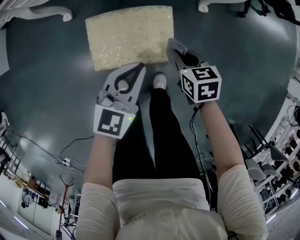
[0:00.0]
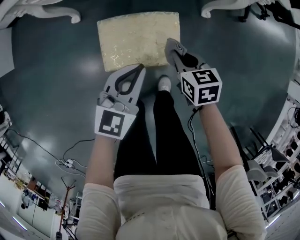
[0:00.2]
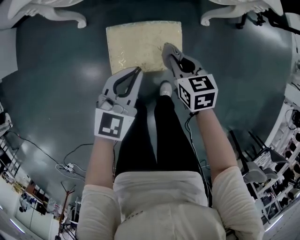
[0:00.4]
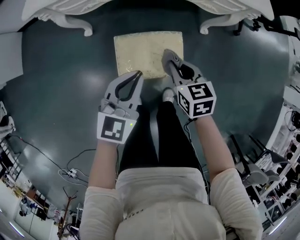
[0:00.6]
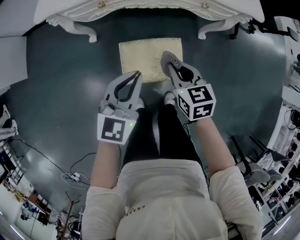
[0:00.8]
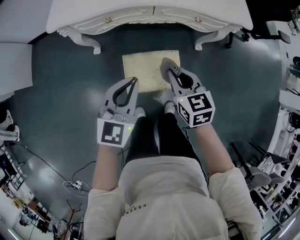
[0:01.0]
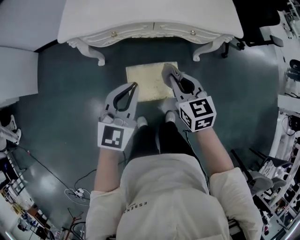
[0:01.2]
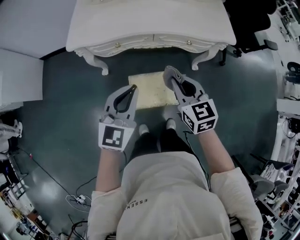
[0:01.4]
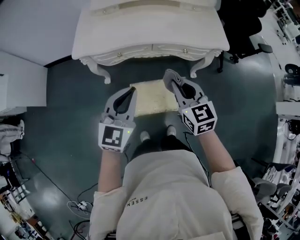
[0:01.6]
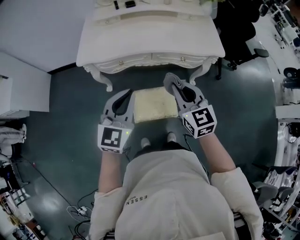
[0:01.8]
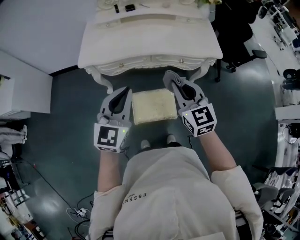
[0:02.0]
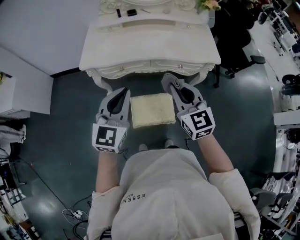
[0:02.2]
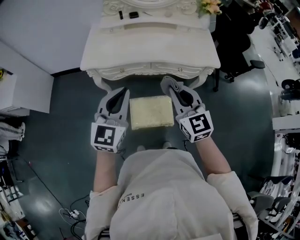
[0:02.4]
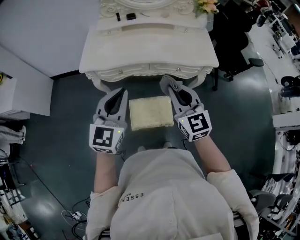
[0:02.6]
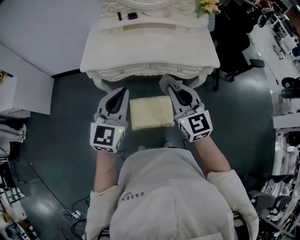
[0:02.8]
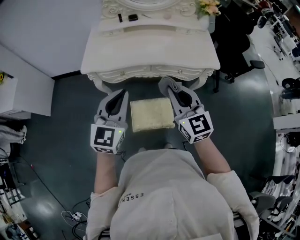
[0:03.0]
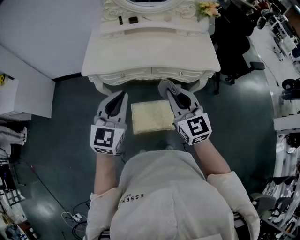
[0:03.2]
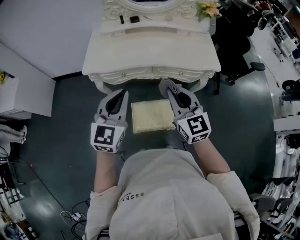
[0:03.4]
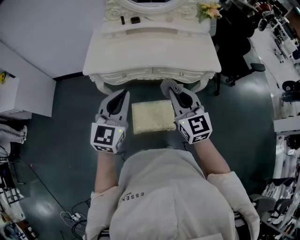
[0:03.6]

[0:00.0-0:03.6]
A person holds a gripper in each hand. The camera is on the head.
0:00.0 to 0:01.8: The two grippers go about 50 cm upward. The left gripper changes its angle by approximately 20 degrees; the right gripper points its fingers some 40 degrees further upward.
0:01.8 to 0:03.6: The two grippers go some 5 cm upward.

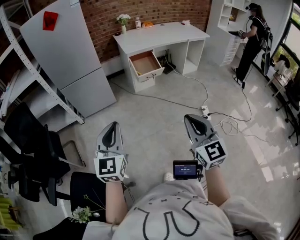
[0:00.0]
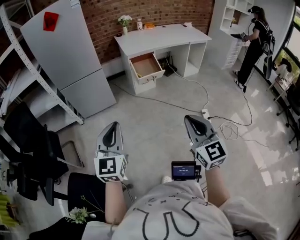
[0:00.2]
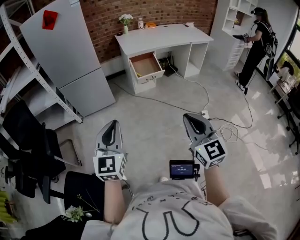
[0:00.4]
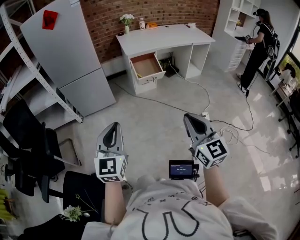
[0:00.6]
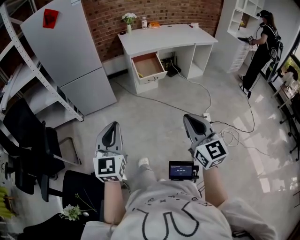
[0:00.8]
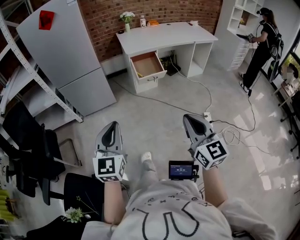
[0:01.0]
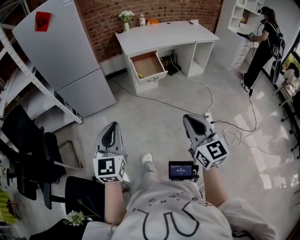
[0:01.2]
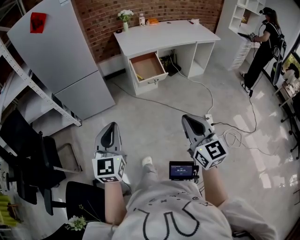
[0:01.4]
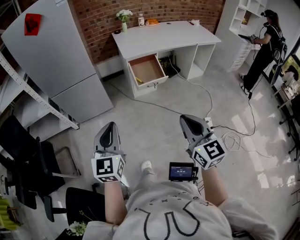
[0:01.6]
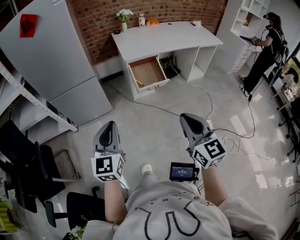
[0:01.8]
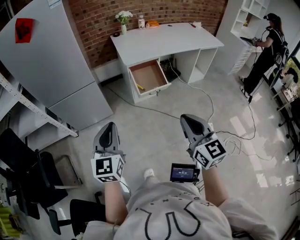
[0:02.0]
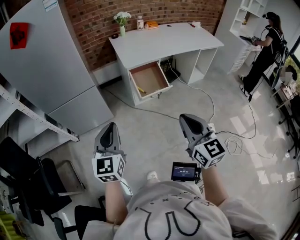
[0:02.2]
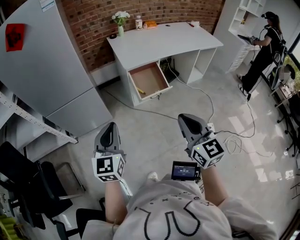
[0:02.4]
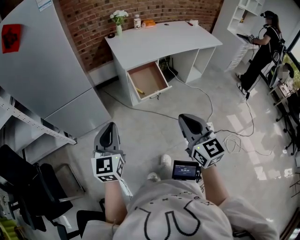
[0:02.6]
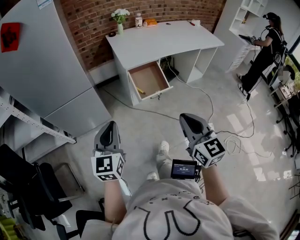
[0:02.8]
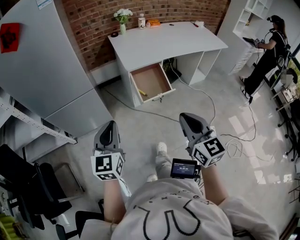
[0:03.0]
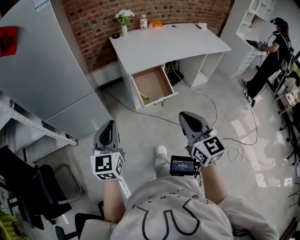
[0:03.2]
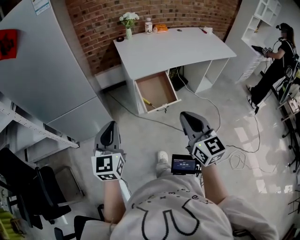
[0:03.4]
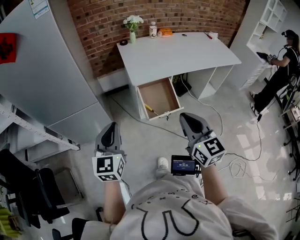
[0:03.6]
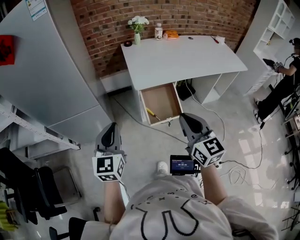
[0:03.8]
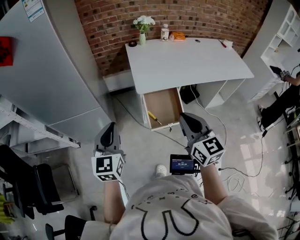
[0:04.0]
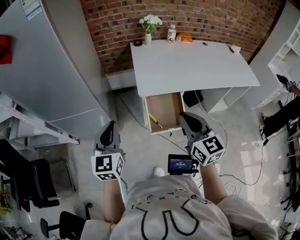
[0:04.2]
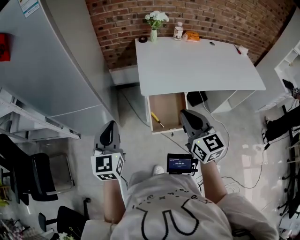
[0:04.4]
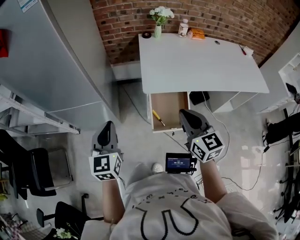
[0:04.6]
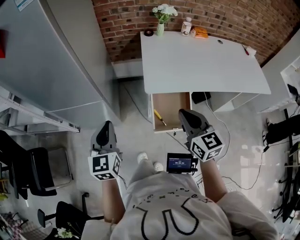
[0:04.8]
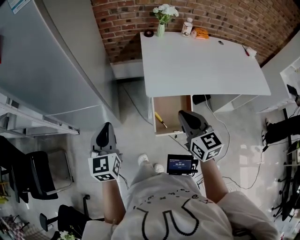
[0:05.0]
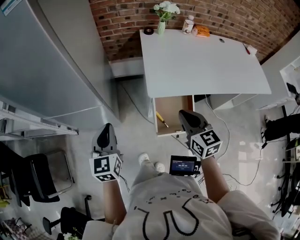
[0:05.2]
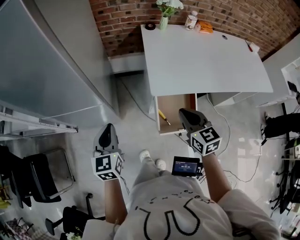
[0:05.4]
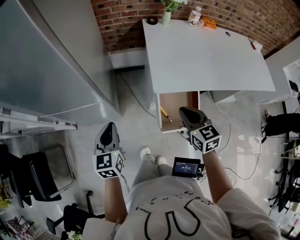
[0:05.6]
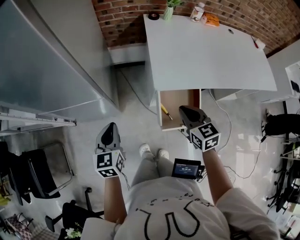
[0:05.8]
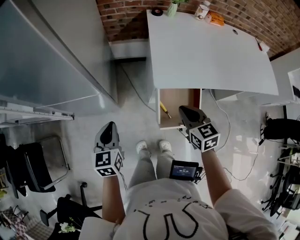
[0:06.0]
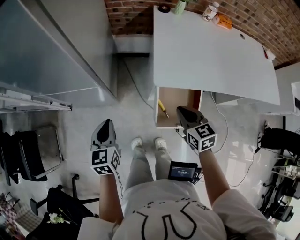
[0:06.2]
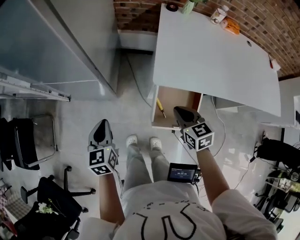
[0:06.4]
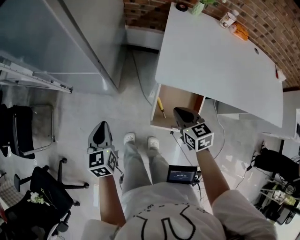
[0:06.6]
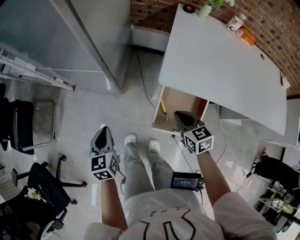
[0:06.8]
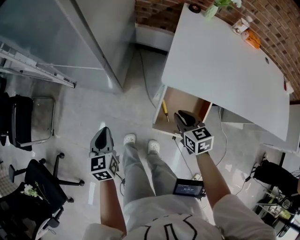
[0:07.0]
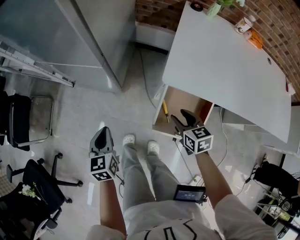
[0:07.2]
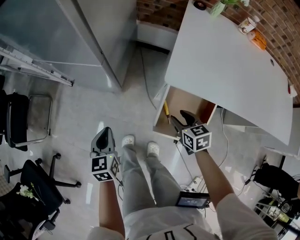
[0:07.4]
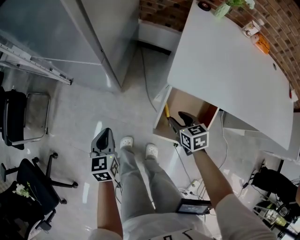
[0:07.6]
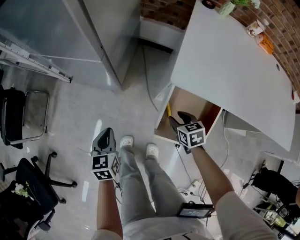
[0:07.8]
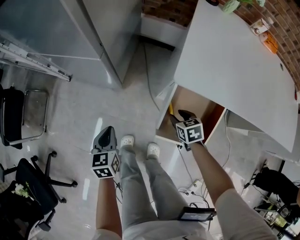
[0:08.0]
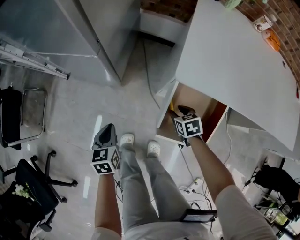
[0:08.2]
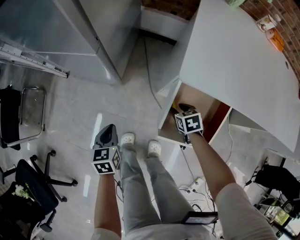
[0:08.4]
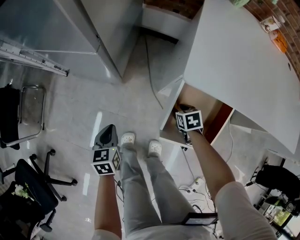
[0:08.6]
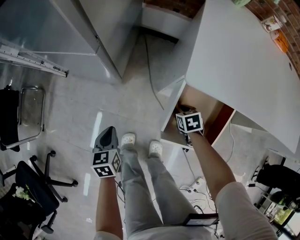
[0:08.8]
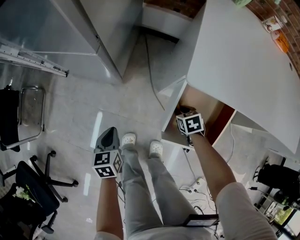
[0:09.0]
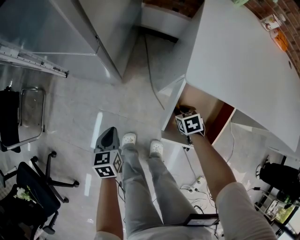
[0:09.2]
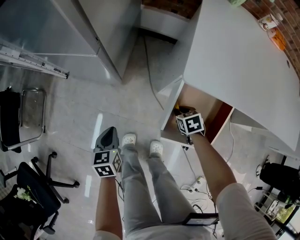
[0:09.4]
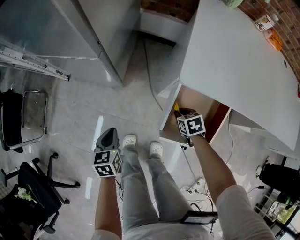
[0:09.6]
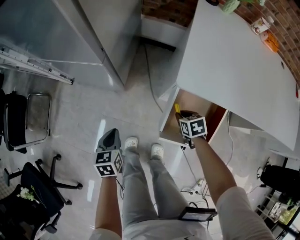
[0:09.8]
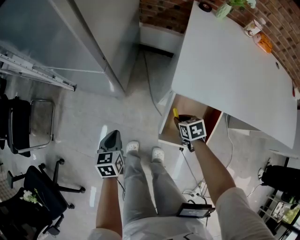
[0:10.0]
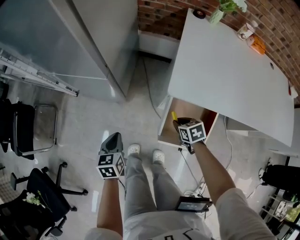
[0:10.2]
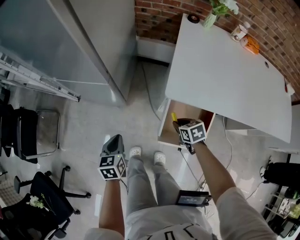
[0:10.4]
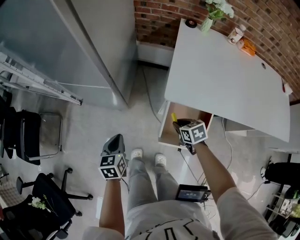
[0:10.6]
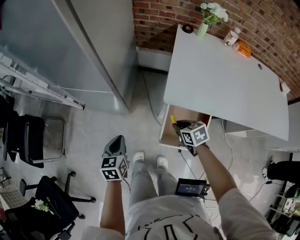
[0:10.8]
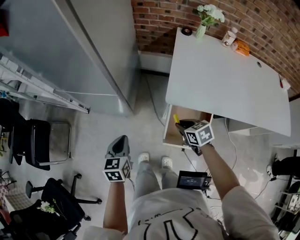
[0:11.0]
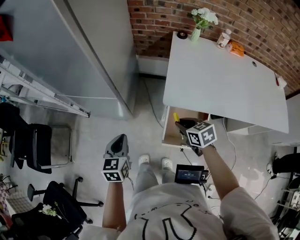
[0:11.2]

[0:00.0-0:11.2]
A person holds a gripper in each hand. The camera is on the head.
0:00.0 to 0:01.6: The two grippers go approximately 25 cm forward.
0:01.6 to 0:03.2: The grippers both shift forward by some 25 cm.
0:03.2 to 0:04.8: Both grippers move forward, some 25 cm. The left gripper turns by approximately 20 degrees.
0:04.8 to 0:06.4: The left gripper shifts approximately 15 cm downward, and rotates roughly 20 degrees; the right gripper goes about 20 cm downward and forward, and swivels approximately 30 degrees.
0:06.4 to 0:08.0: The grippers both shift downward by roughly 20 cm. The right gripper changes its angle by roughly 20 degrees, and opens its fingers.
0:08.0 to 0:09.6: The right gripper closes its fingers.
0:09.6 to 0:11.2: Both grippers travel together upward, roughly 30 cm. The right gripper turns by approximately 20 degrees; the left gripper turns by about 20 degrees.

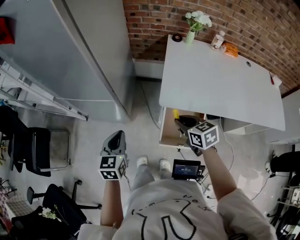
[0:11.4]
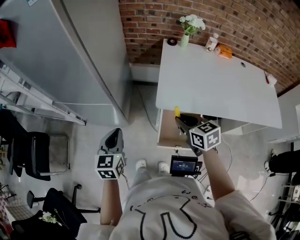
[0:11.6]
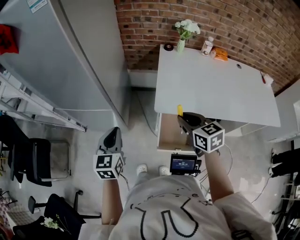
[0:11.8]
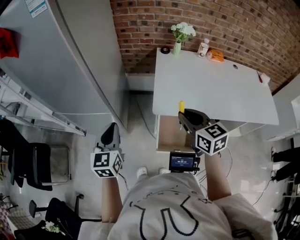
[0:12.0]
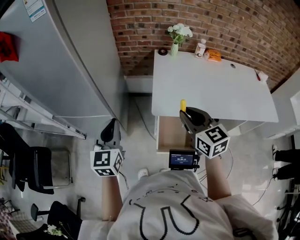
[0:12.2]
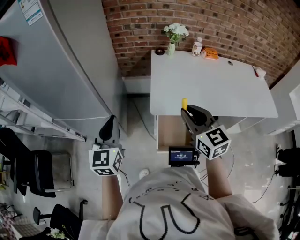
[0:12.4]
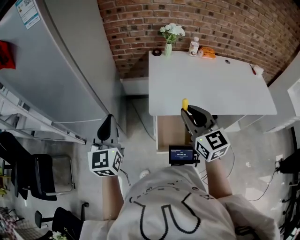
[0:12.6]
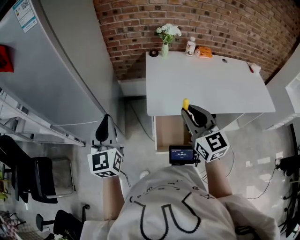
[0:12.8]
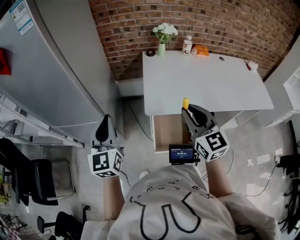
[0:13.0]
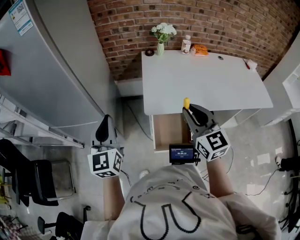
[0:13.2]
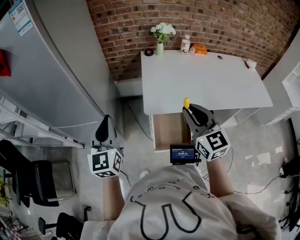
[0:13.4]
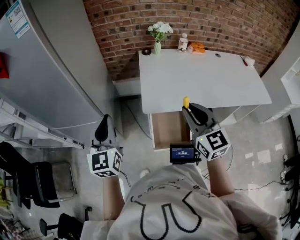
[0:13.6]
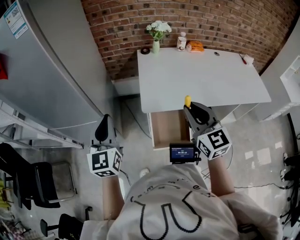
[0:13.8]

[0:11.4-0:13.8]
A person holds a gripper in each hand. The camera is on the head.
0:11.4 to 0:12.6: The two grippers go some 15 cm upward. The left gripper swivels approximately 30 degrees. Meanwhile the right gripper swivels some 40 degrees.
0:12.6 to 0:13.8: The grippers move only a little.

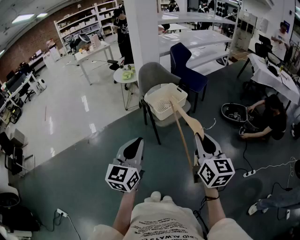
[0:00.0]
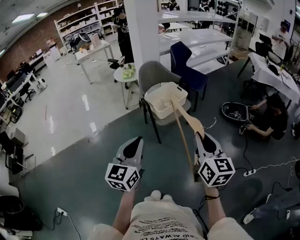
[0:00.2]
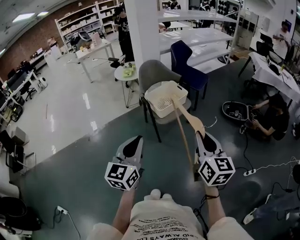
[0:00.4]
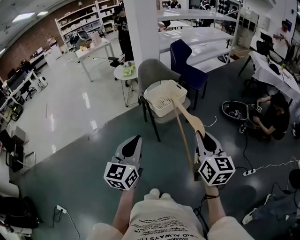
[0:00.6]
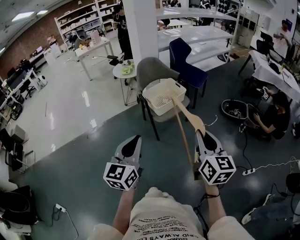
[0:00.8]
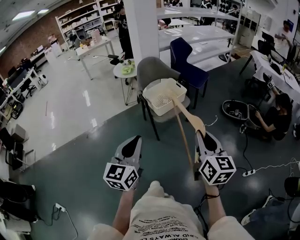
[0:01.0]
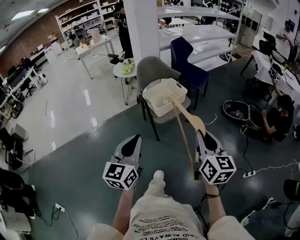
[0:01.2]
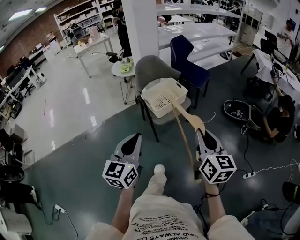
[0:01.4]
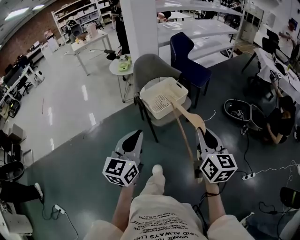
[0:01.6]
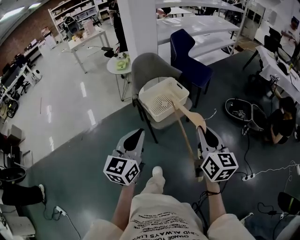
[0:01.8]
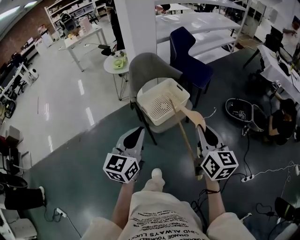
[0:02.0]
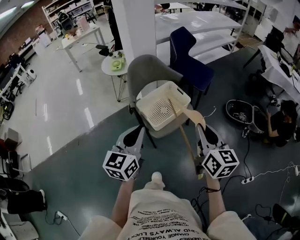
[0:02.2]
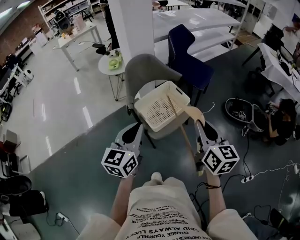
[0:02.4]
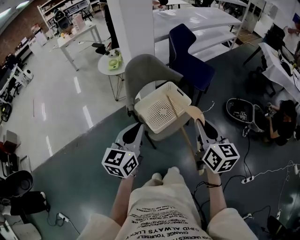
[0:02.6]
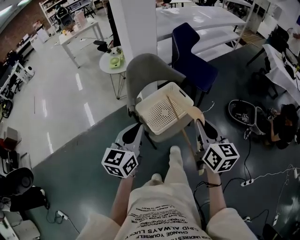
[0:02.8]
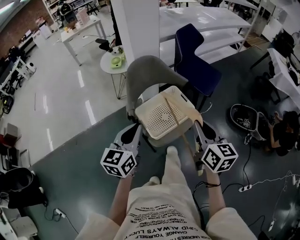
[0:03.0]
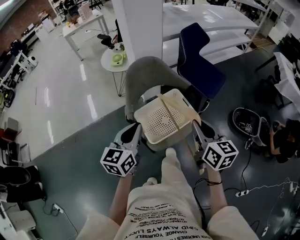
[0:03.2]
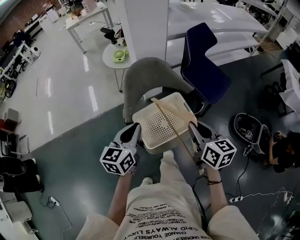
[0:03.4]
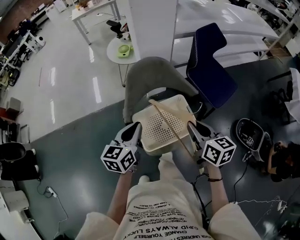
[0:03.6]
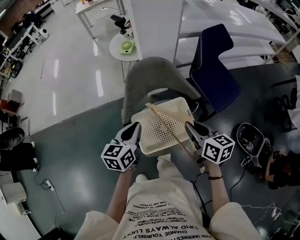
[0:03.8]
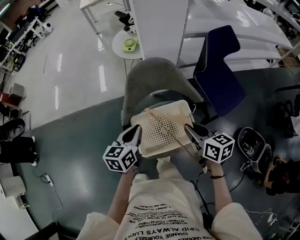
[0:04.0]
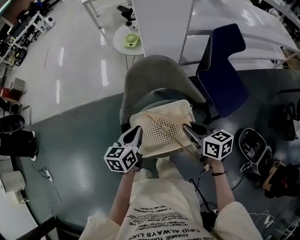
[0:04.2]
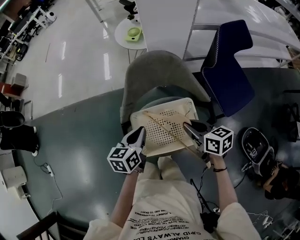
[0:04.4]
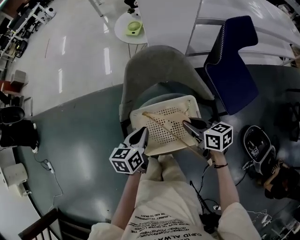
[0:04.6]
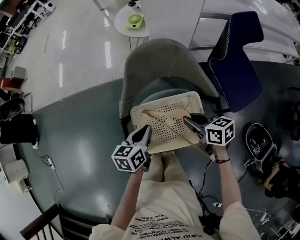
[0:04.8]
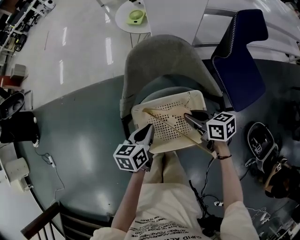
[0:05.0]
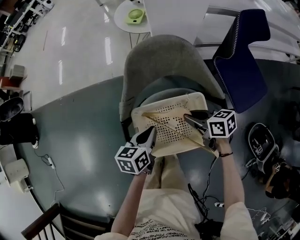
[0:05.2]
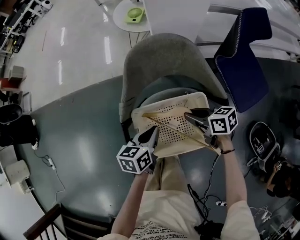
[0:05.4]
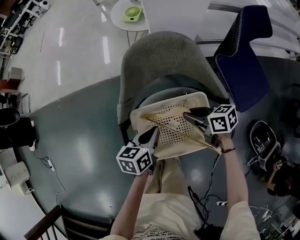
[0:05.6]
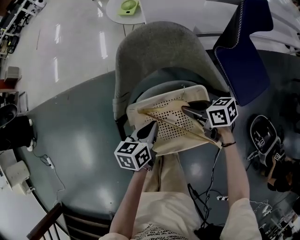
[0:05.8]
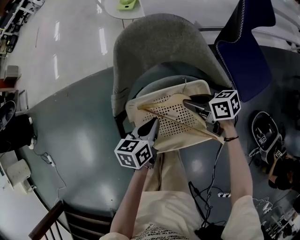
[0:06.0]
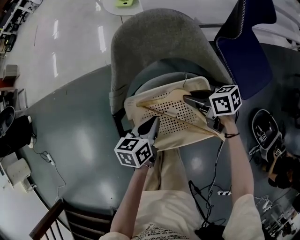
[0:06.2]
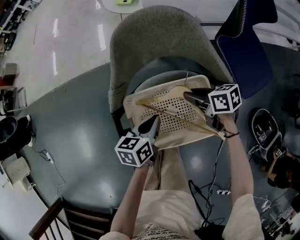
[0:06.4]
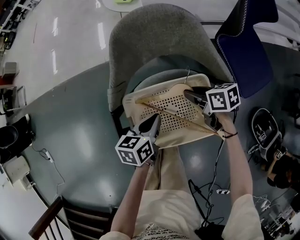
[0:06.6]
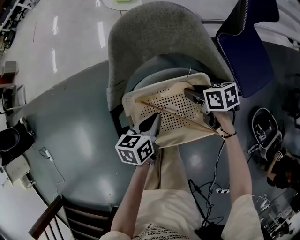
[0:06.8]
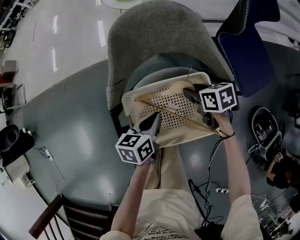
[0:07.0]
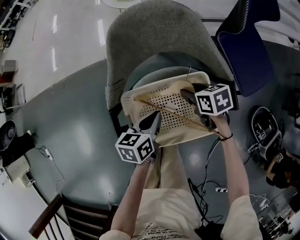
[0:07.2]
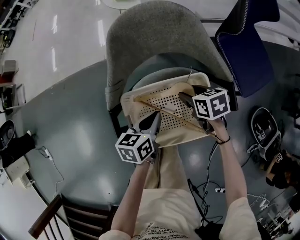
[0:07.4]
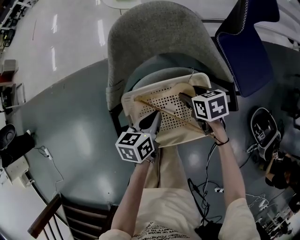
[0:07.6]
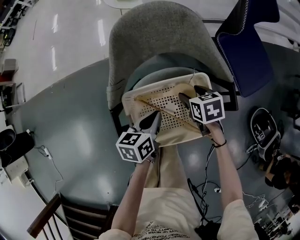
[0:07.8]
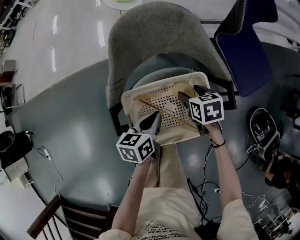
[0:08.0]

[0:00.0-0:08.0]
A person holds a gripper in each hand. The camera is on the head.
0:00.0 to 0:01.6: Both grippers travel together forward, roughly 10 cm.
0:01.6 to 0:03.2: The grippers both shift forward by roughly 35 cm.
0:03.2 to 0:04.8: The two grippers go some 20 cm downward. The left gripper changes its angle by some 40 degrees. The right gripper swivels about 50 degrees.
0:04.8 to 0:06.4: The left gripper shifts about 10 cm downward, while the right gripper shifts approximately 10 cm downward and forward.
0:06.4 to 0:08.0: The right gripper rotates roughly 30 degrees, and opens its fingers.
